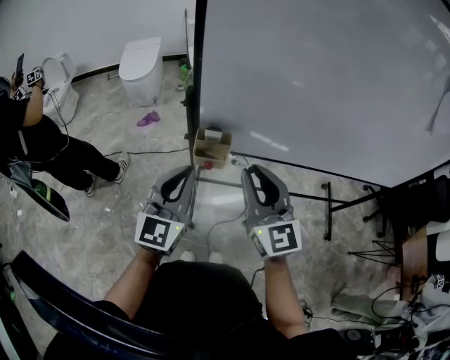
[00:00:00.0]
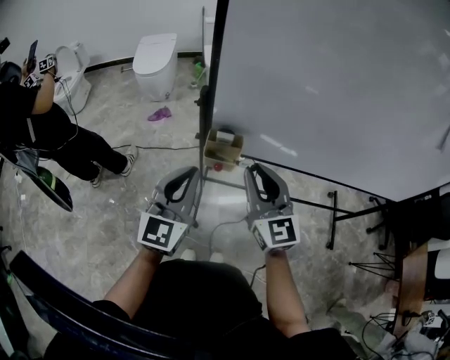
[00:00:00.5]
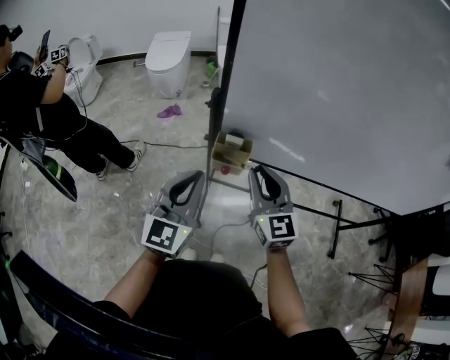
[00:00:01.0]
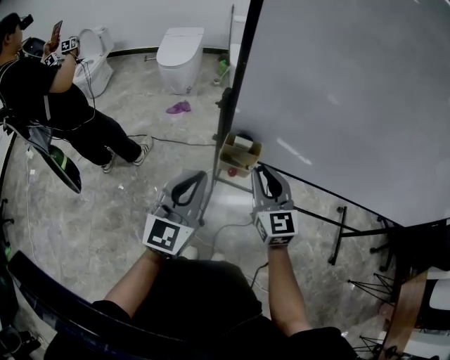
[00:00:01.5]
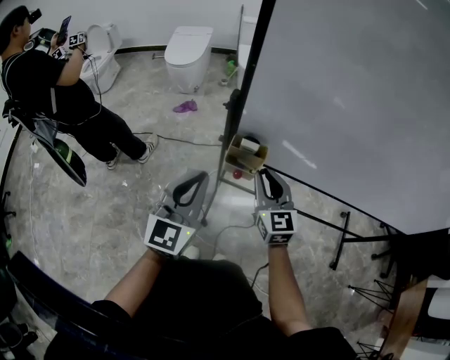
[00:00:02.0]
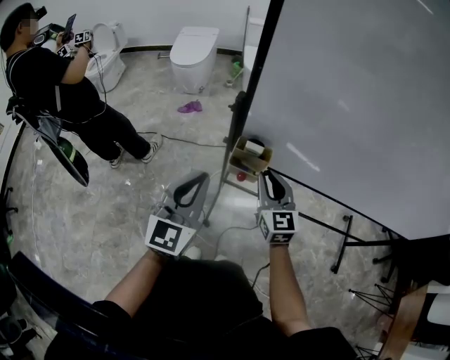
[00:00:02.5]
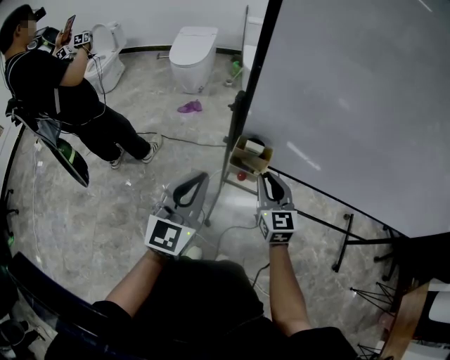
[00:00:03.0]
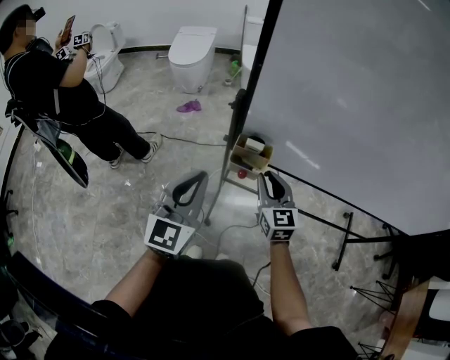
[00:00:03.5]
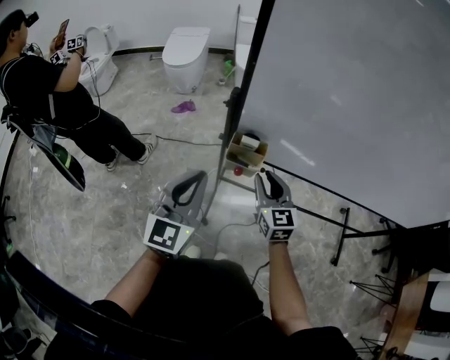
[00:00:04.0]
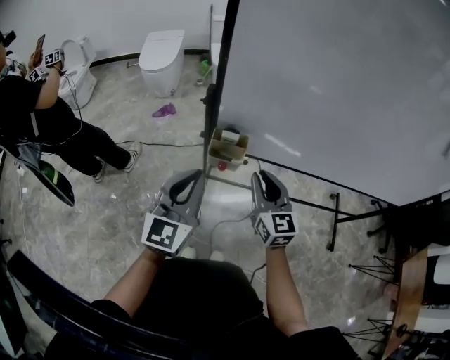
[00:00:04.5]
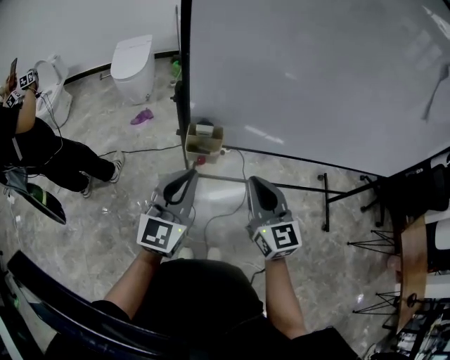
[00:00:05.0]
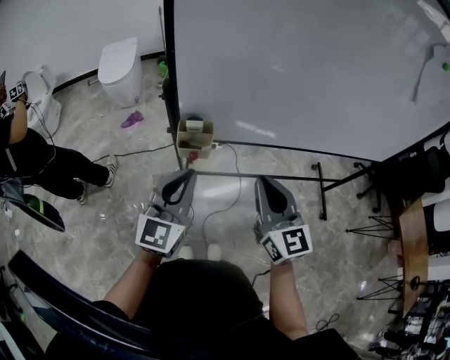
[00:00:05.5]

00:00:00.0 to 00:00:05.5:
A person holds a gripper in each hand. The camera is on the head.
00:00:00.0 to 00:00:02.0: The right gripper shifts some 15 cm downward and forward.
00:00:02.0 to 00:00:03.5: The grippers move only a little.
00:00:03.5 to 00:00:05.5: The right gripper travels backward, upward and to the right by roughly 25 cm, while the left gripper shifts roughly 10 cm to the right.

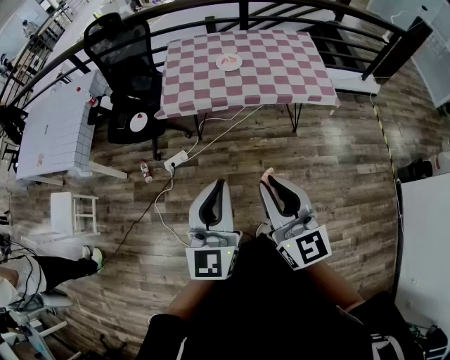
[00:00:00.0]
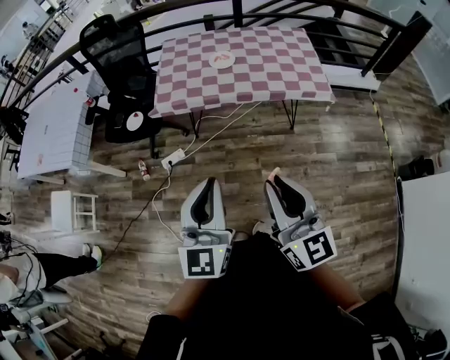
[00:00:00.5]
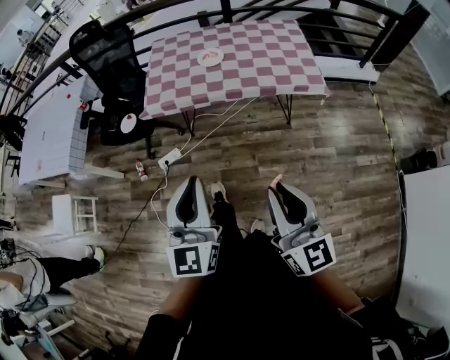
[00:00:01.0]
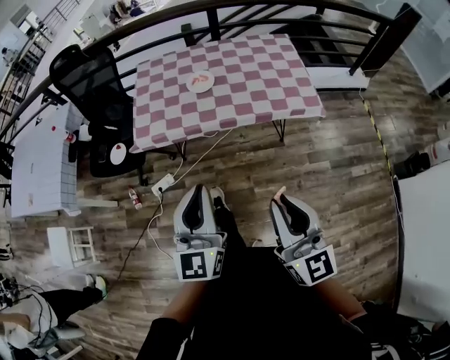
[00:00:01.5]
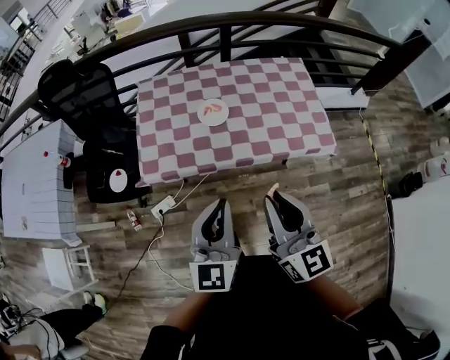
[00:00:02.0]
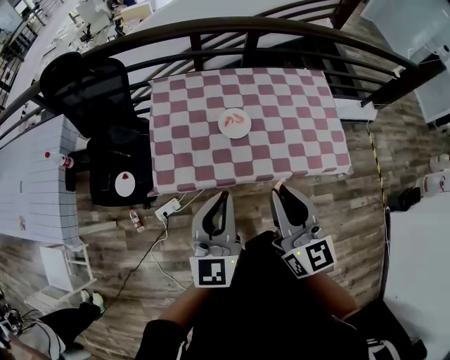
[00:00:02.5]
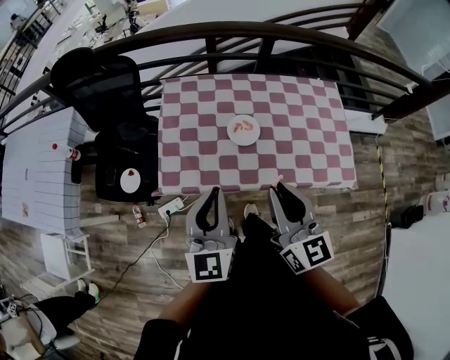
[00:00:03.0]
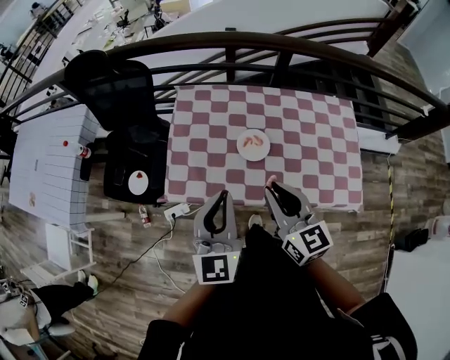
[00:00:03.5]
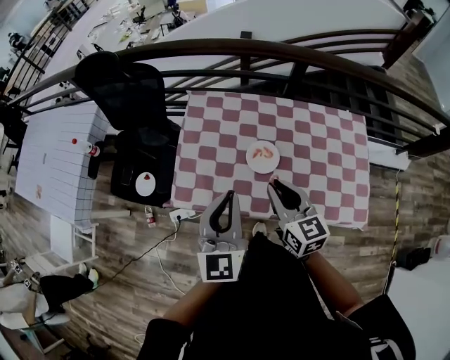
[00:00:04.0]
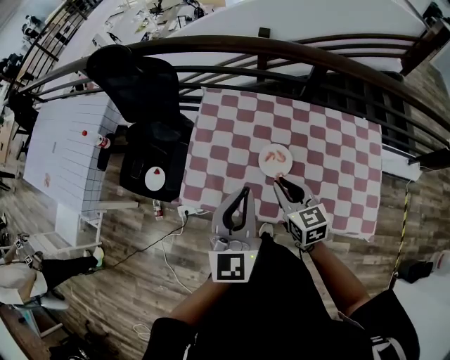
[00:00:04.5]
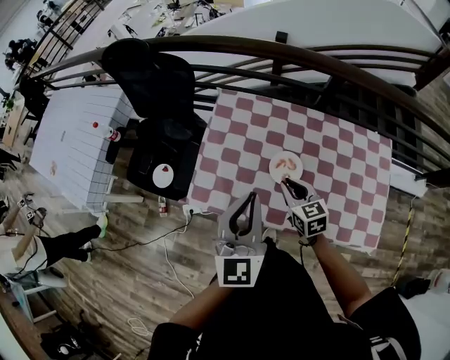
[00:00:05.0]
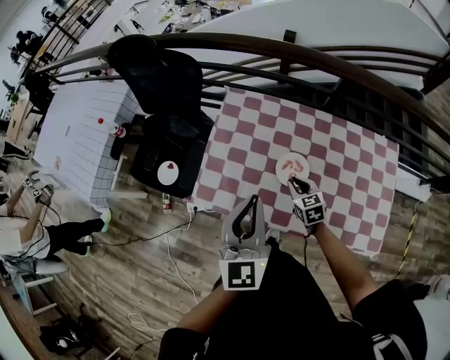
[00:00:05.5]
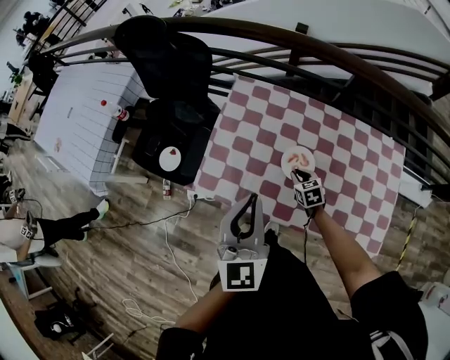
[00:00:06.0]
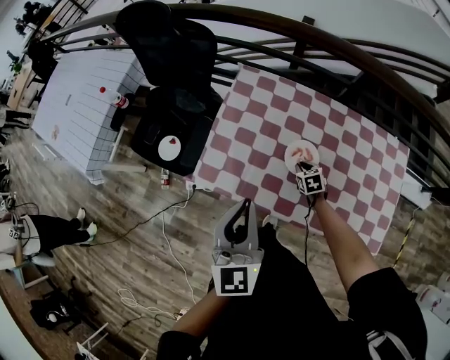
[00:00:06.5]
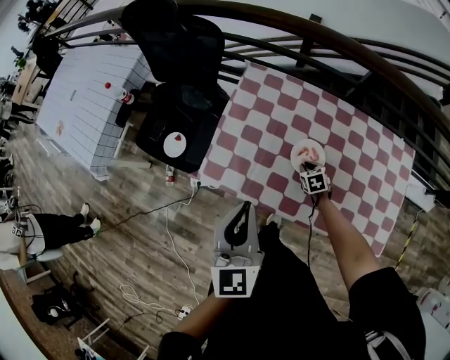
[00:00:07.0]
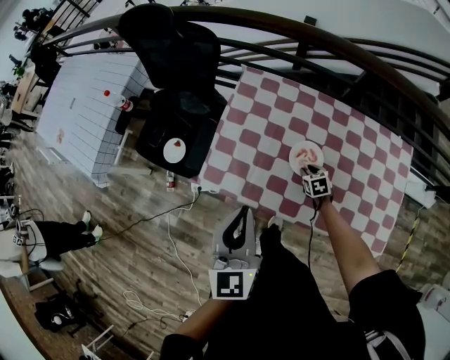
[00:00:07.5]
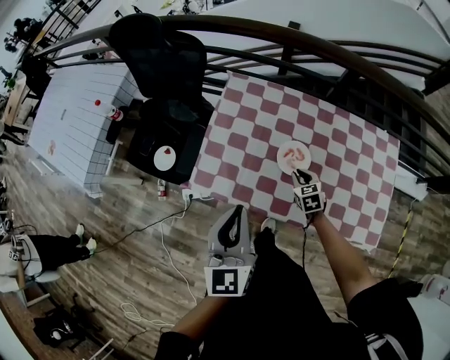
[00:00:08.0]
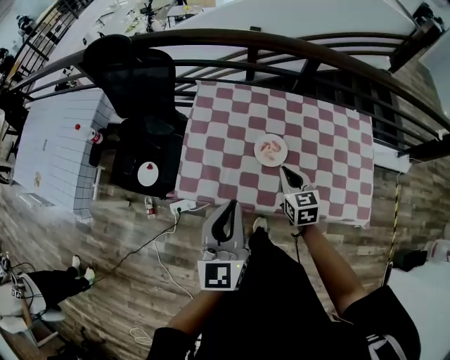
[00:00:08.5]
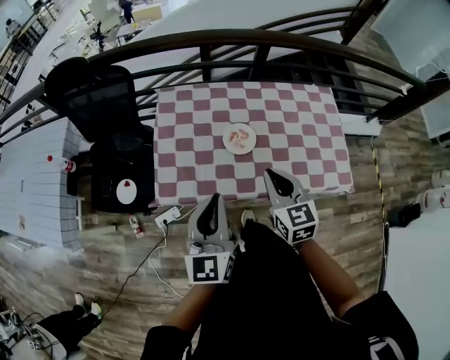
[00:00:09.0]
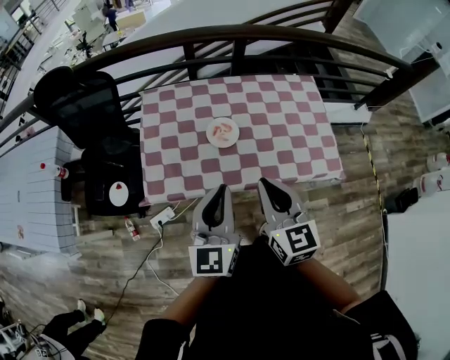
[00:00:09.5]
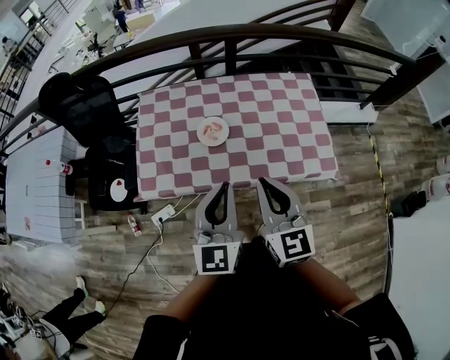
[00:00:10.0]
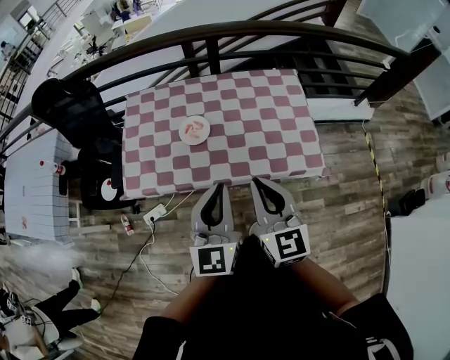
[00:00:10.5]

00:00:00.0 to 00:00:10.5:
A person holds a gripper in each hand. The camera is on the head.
00:00:00.0 to 00:00:02.0: Both grippers move forward, roughly 30 cm.
00:00:02.0 to 00:00:04.0: The grippers both shift forward by some 25 cm. The right gripper turns by roughly 20 degrees.
00:00:04.0 to 00:00:06.5: The left gripper moves approximately 5 cm, while the right gripper travels downward by some 35 cm, and tilts its fingers about 40 degrees downward.
00:00:06.5 to 00:00:08.5: The right gripper goes some 20 cm upward, and rotates some 30 degrees.
00:00:08.5 to 00:00:10.5: The left gripper goes some 25 cm to the right and backward. The right gripper goes some 35 cm backward, to the right and upward, and changes its angle by approximately 30 degrees.

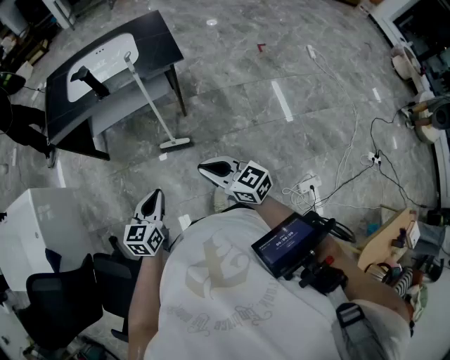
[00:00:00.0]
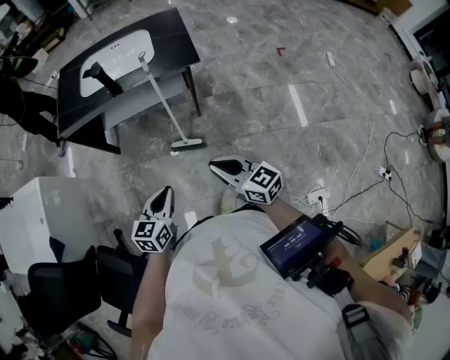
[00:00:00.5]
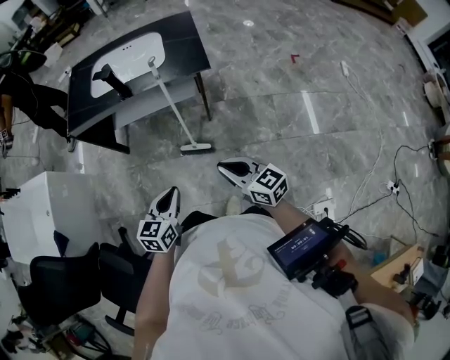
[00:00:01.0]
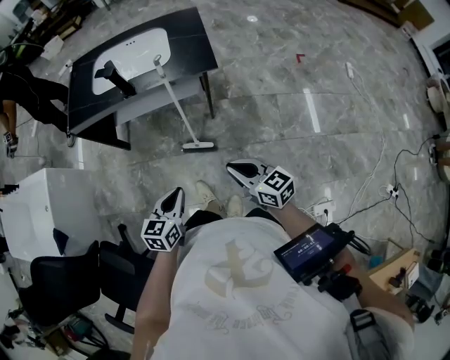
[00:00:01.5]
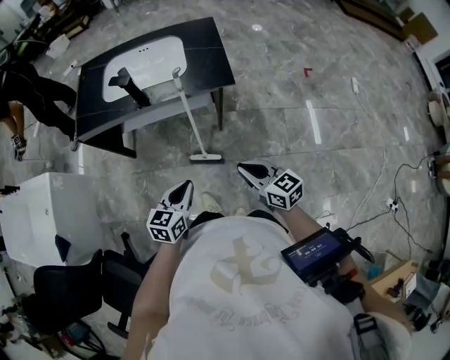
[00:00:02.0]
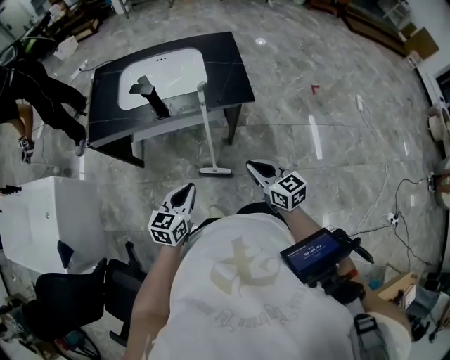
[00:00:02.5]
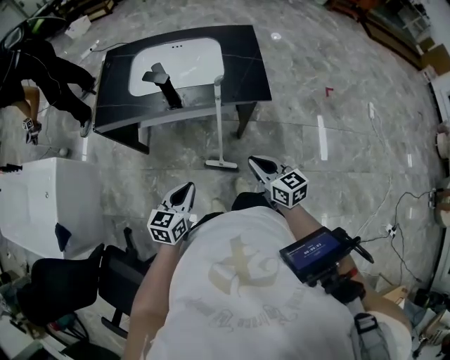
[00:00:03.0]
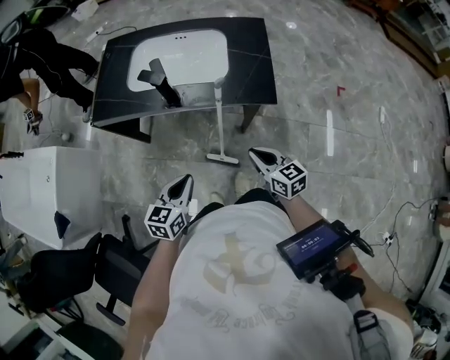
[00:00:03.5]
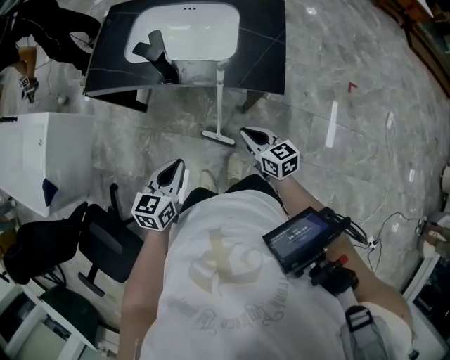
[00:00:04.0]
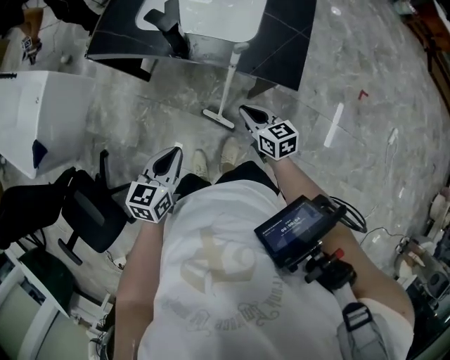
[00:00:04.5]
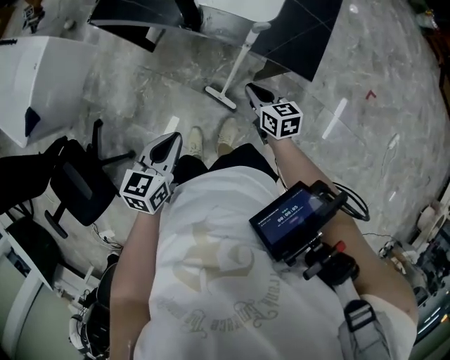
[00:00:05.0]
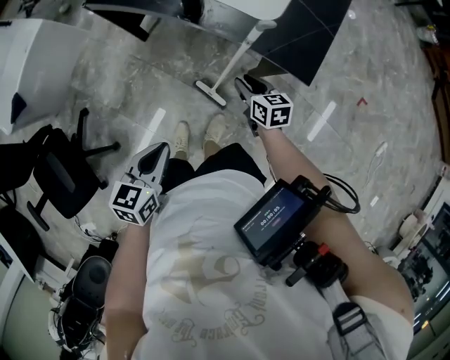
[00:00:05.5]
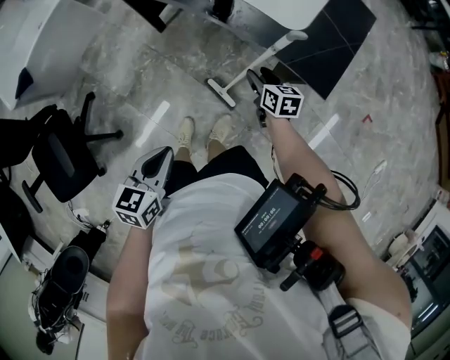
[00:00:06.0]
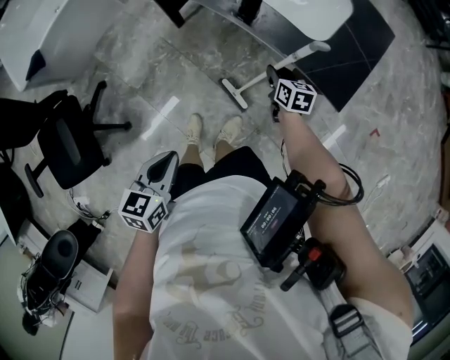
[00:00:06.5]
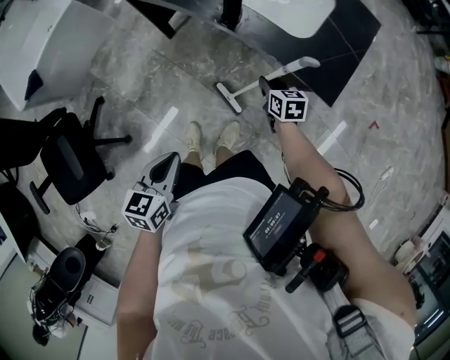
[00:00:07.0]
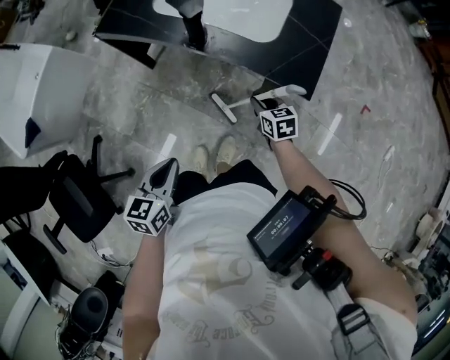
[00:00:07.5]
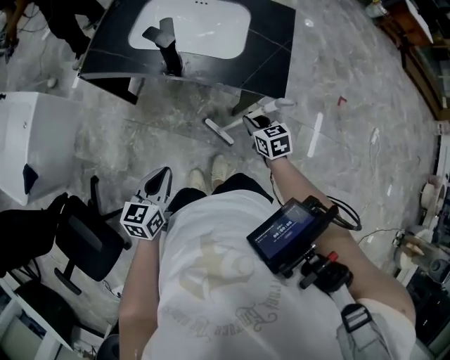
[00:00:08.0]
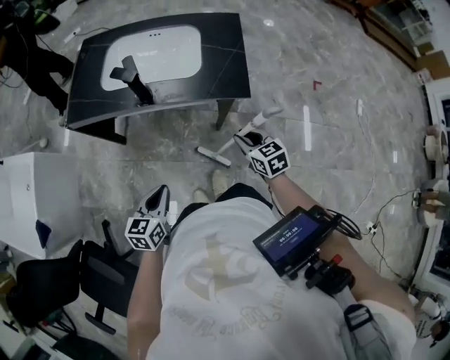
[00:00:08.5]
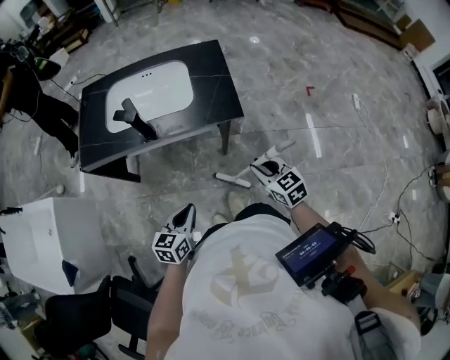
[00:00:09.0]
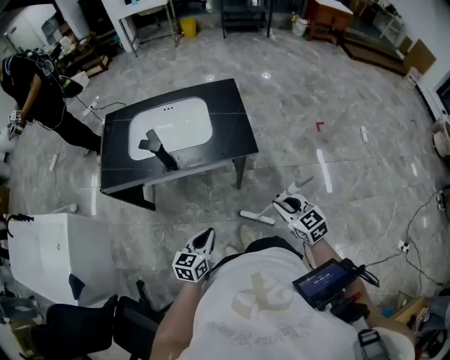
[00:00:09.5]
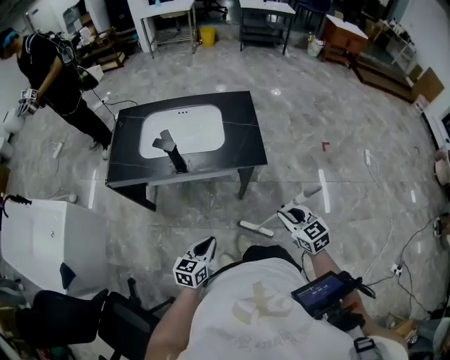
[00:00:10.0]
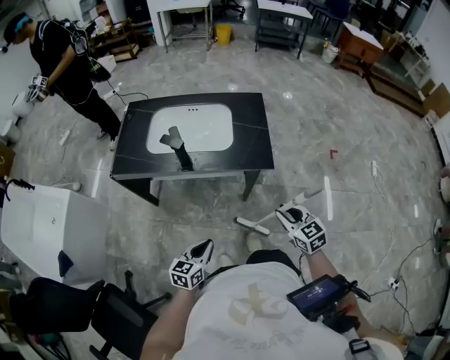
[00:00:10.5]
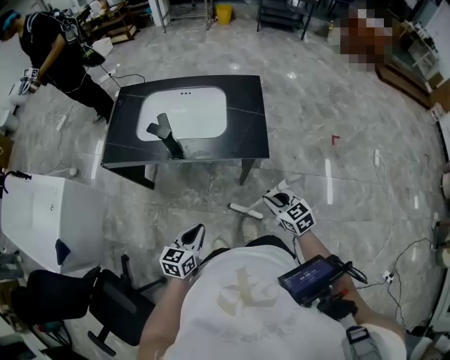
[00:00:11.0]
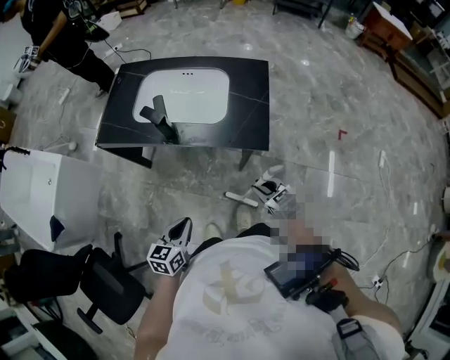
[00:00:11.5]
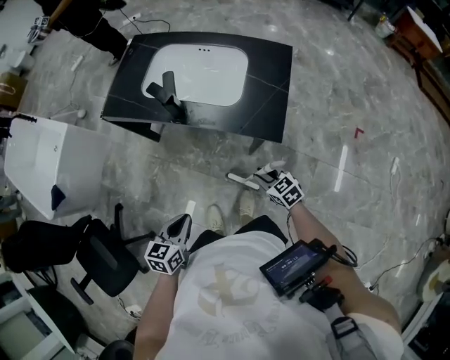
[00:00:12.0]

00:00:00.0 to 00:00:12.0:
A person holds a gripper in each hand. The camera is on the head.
00:00:00.0 to 00:00:02.0: The left gripper travels forward by about 15 cm. Meanwhile the right gripper moves forward and to the right, about 15 cm.
00:00:02.0 to 00:00:04.0: The left gripper heads forward and to the left, covering approximately 10 cm; the right gripper is displaced forward and downward by some 20 cm.
00:00:04.0 to 00:00:06.0: The left gripper is displaced backward by roughly 10 cm, and changes its angle by some 20 degrees, while the right gripper heads downward and forward, covering some 20 cm, and opens up.
00:00:06.0 to 00:00:08.0: The right gripper shifts about 15 cm upward, backward and to the right, and closes its fingers; the left gripper travels forward by roughly 5 cm.
00:00:08.0 to 00:00:10.0: The right gripper shifts roughly 25 cm upward, backward and to the right. Meanwhile the left gripper goes about 5 cm to the right, and changes its angle by about 20 degrees.
00:00:10.0 to 00:00:12.0: The right gripper heads downward, covering some 20 cm, and swivels about 30 degrees; the left gripper swivels roughly 30 degrees.
